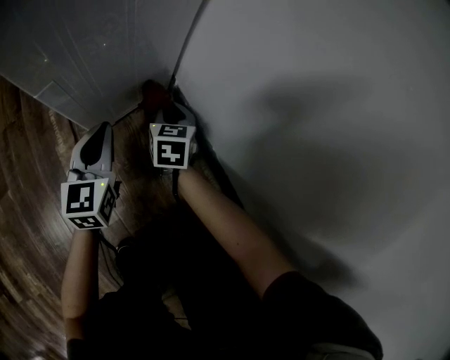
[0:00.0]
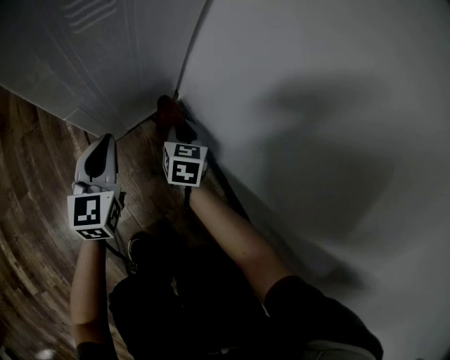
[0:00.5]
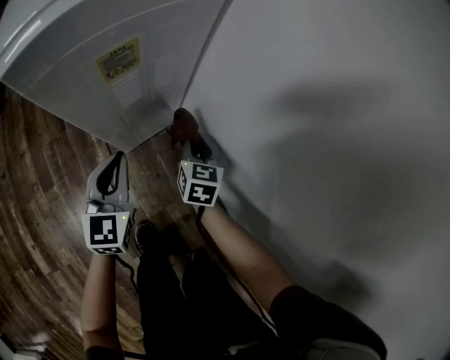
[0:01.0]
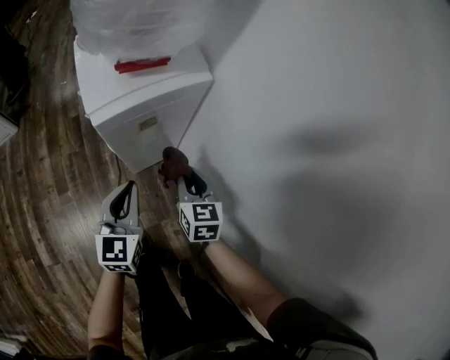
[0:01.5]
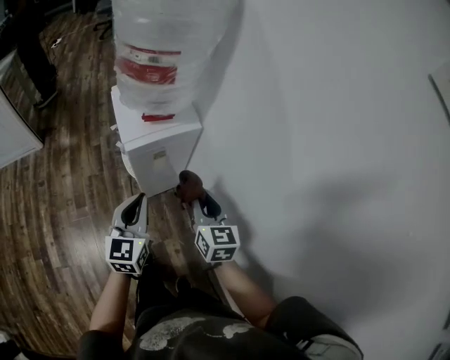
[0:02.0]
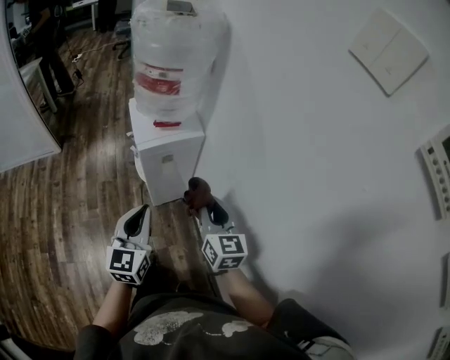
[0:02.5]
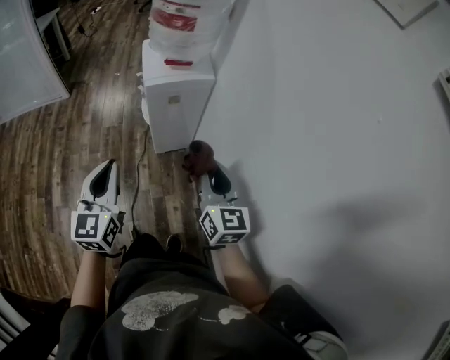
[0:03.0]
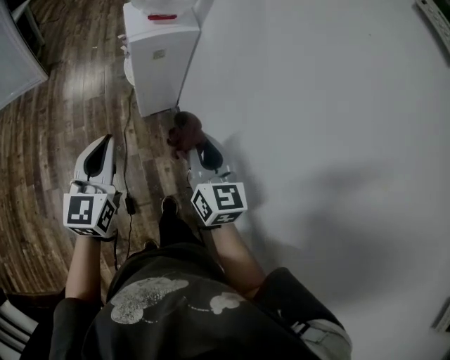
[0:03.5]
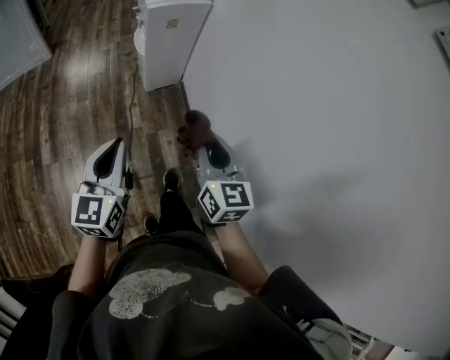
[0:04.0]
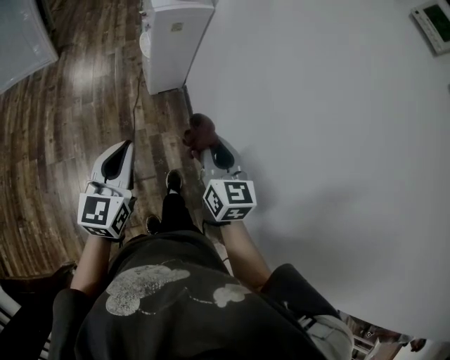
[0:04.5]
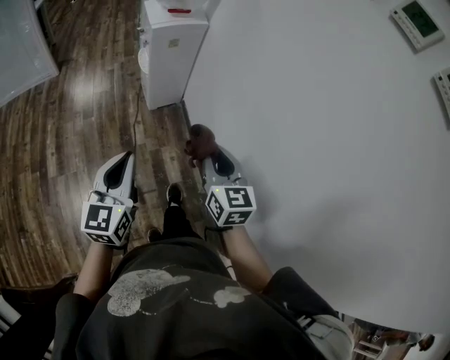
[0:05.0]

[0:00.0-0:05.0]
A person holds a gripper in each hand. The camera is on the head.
0:00.0 to 0:02.5: Both grippers travel together upward, approximately 80 cm. The right gripper rotates about 30 degrees.
0:02.5 to 0:05.0: Both grippers travel together backward, some 35 cm.

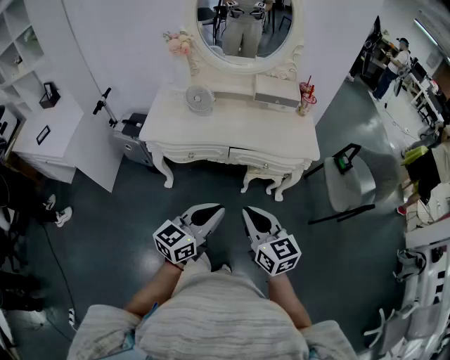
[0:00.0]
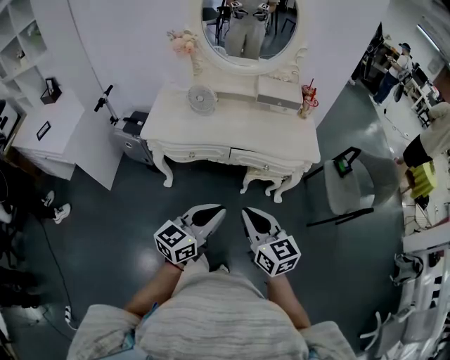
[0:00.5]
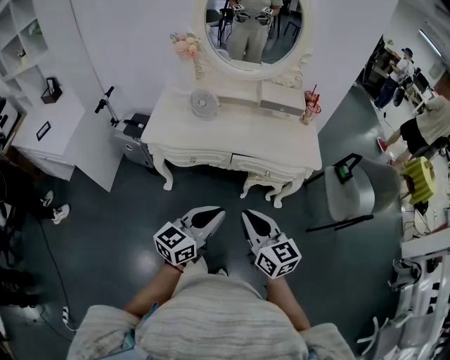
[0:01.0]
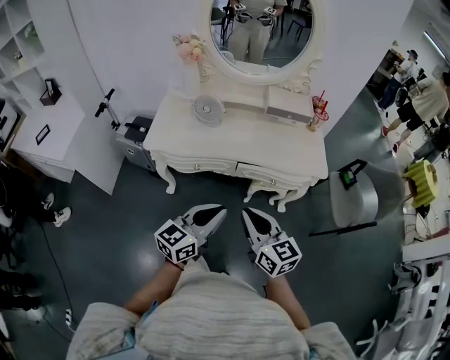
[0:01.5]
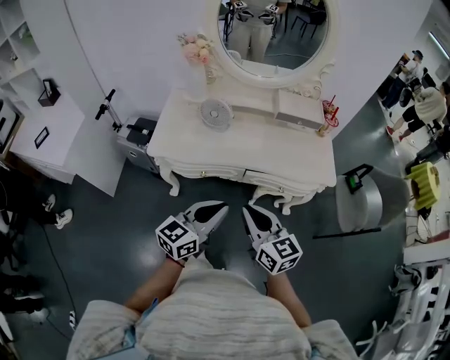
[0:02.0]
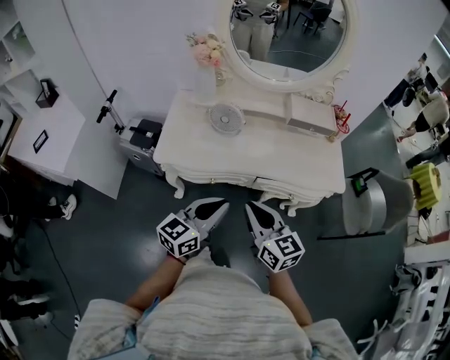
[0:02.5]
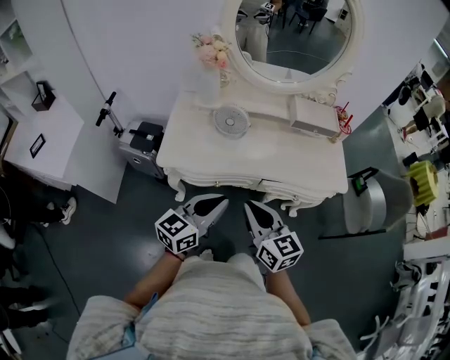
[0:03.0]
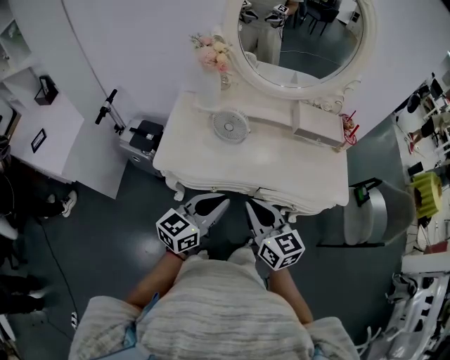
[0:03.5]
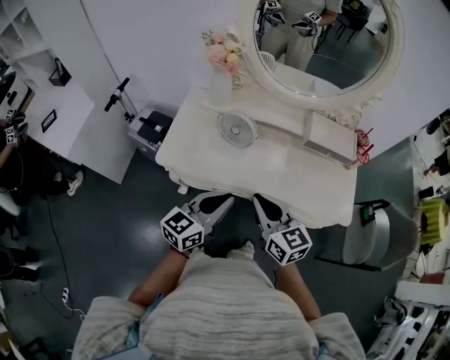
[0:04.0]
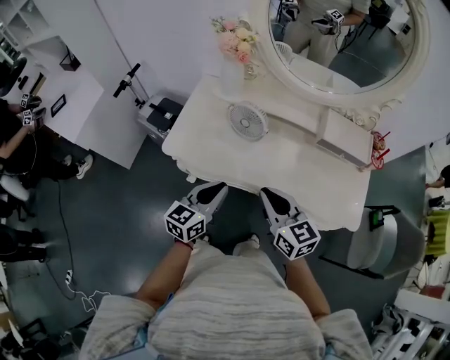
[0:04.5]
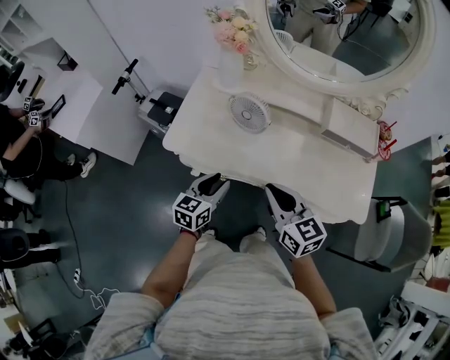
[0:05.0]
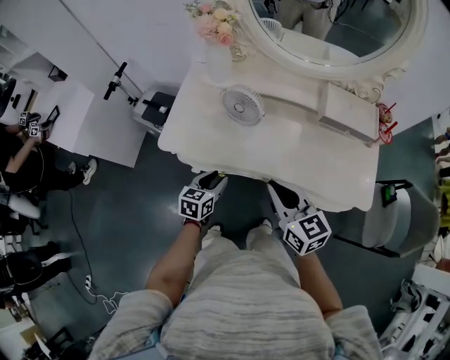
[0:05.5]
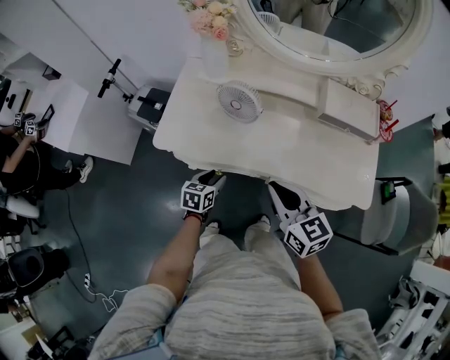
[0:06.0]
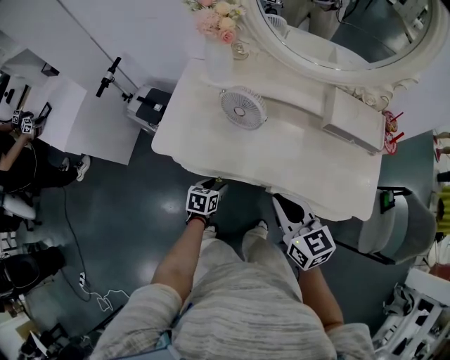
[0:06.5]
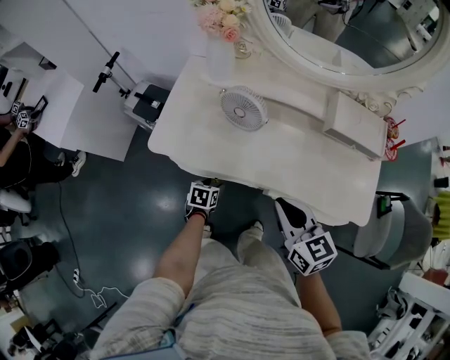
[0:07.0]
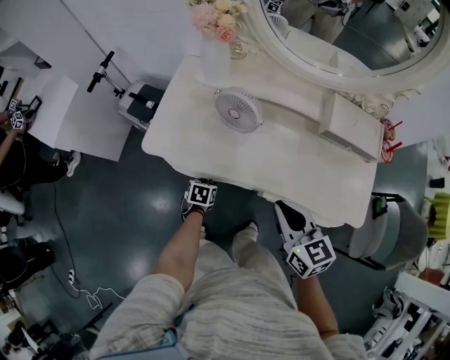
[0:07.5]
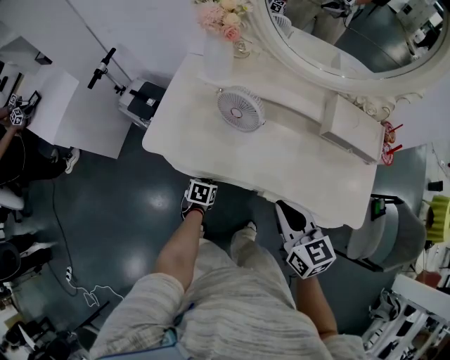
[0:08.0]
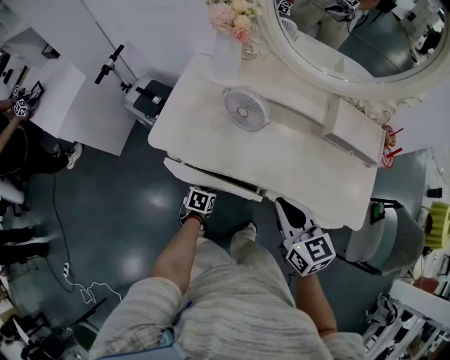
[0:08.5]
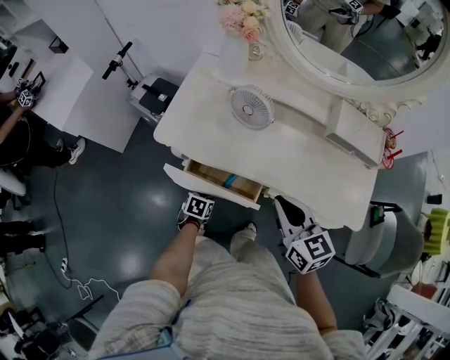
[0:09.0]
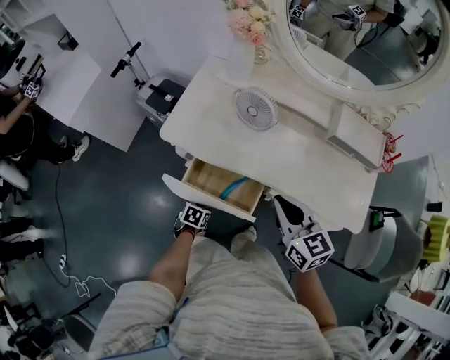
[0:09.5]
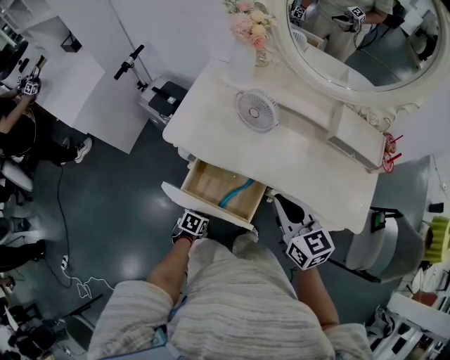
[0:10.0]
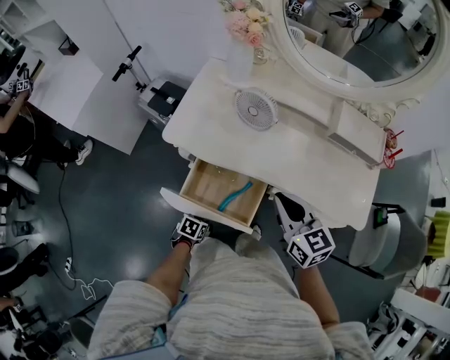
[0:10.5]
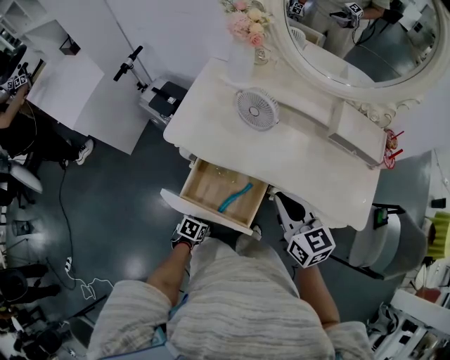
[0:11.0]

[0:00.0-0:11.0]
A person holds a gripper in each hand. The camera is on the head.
0:00.0 to 0:02.0: Both grippers move forward and to the left, about 15 cm.
0:02.0 to 0:03.5: The two grippers go about 15 cm forward and to the left.
0:03.5 to 0:05.5: The left gripper goes about 25 cm downward and forward, points its fingers some 30 degrees further downward, and opens, while the right gripper travels forward and to the right by roughly 10 cm.
0:05.5 to 0:07.5: The left gripper is displaced downward by approximately 15 cm, and swivels about 30 degrees.
0:07.5 to 0:09.0: The left gripper shifts some 10 cm backward.
0:09.0 to 0:11.0: The left gripper travels backward by roughly 10 cm.

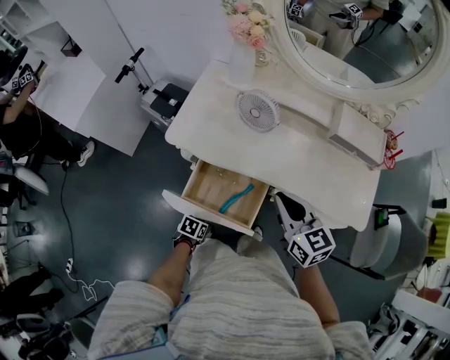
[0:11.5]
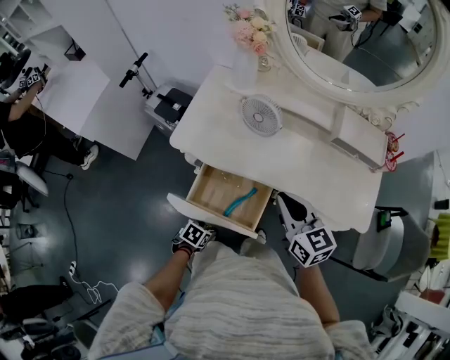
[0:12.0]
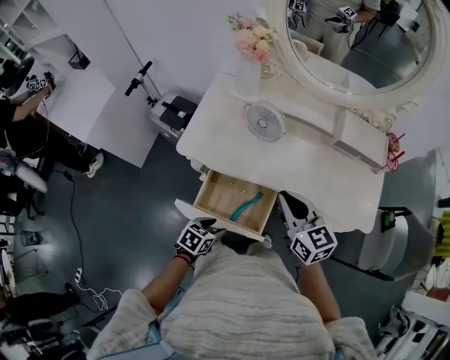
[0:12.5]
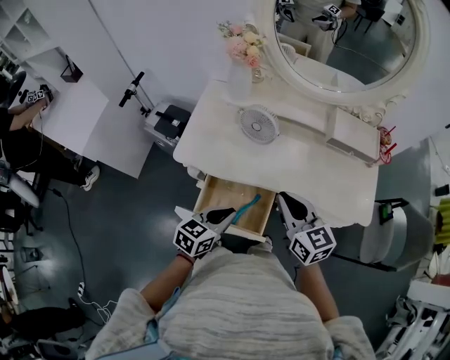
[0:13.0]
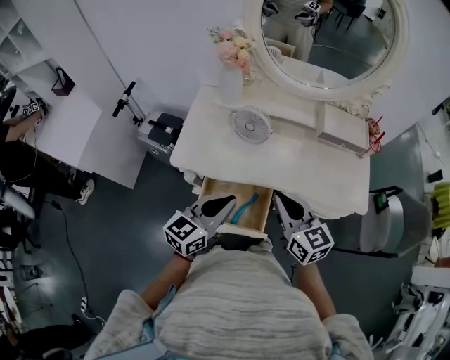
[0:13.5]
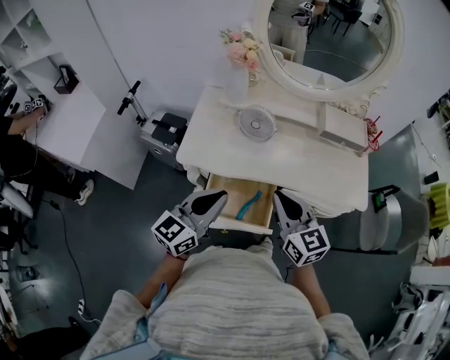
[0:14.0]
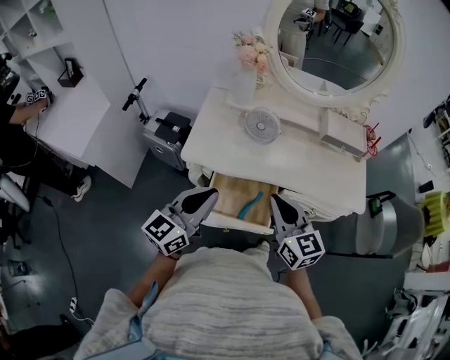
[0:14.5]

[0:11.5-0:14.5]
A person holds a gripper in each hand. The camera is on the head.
0:11.5 to 0:13.0: The left gripper goes about 30 cm upward and forward, points its fingers some 40 degrees further upward, and closes its fingers.
0:13.0 to 0:14.5: The right gripper is displaced backward and to the left by roughly 10 cm. Meanwhile the left gripper moves upward and to the left, about 20 cm, and tips its fingers upward by approximately 30 degrees.

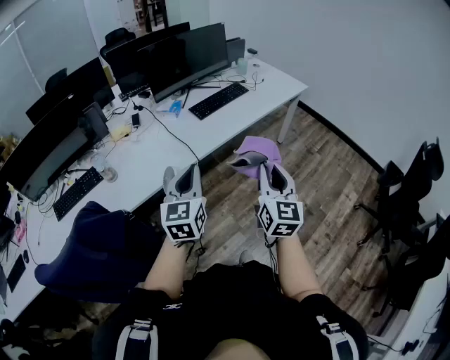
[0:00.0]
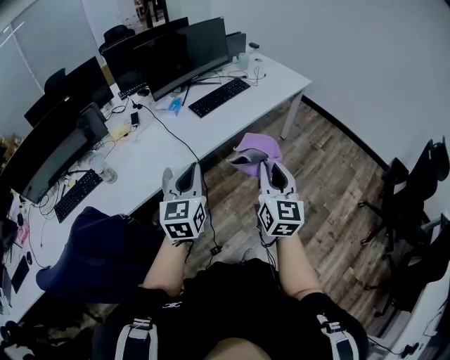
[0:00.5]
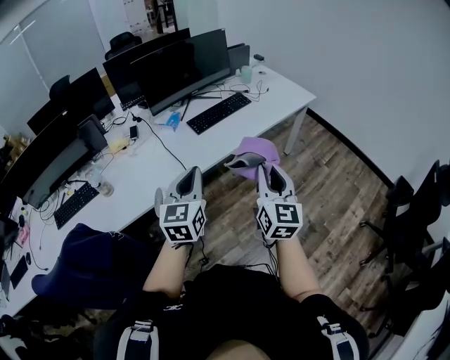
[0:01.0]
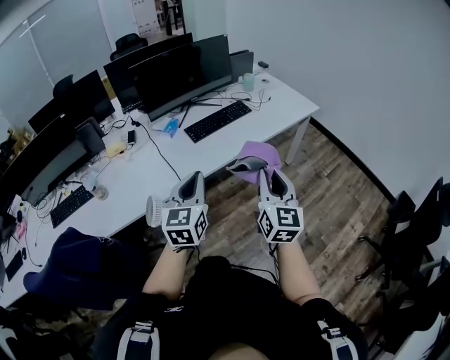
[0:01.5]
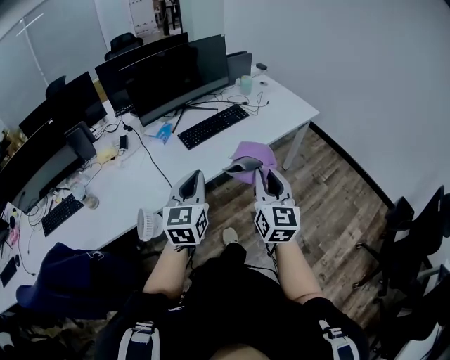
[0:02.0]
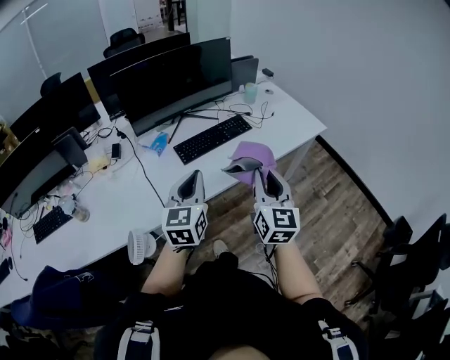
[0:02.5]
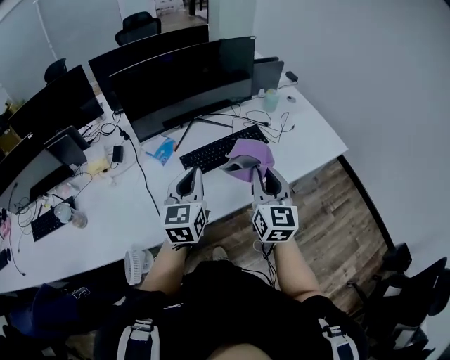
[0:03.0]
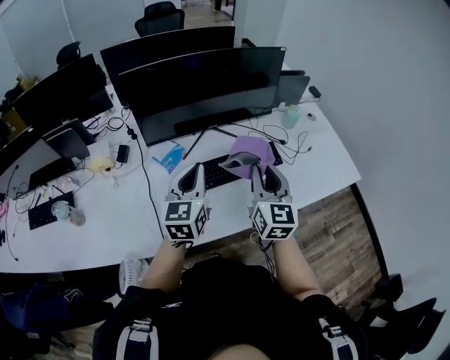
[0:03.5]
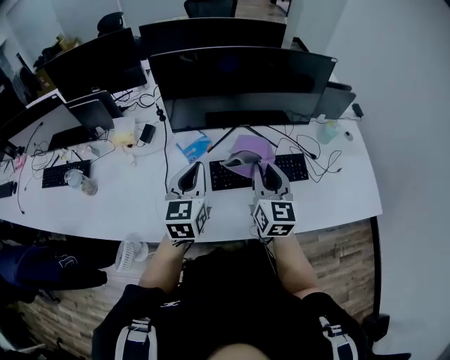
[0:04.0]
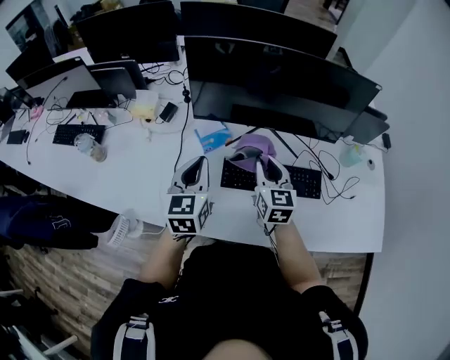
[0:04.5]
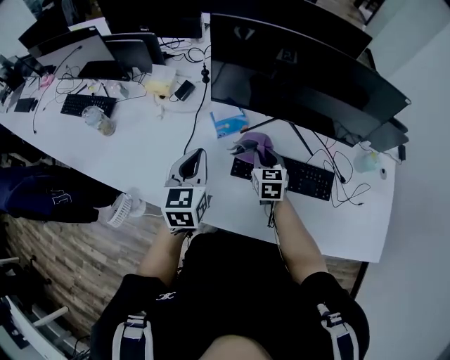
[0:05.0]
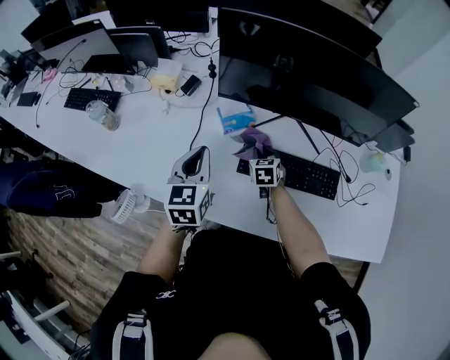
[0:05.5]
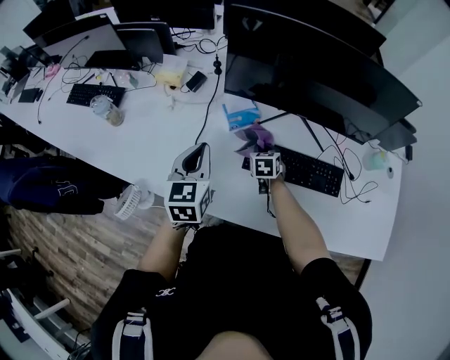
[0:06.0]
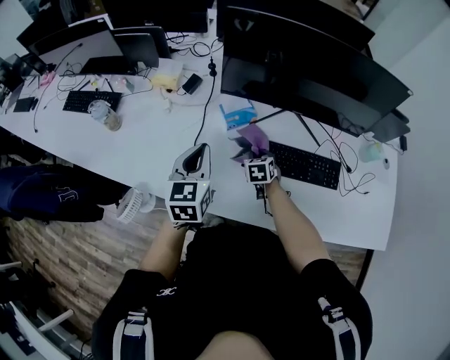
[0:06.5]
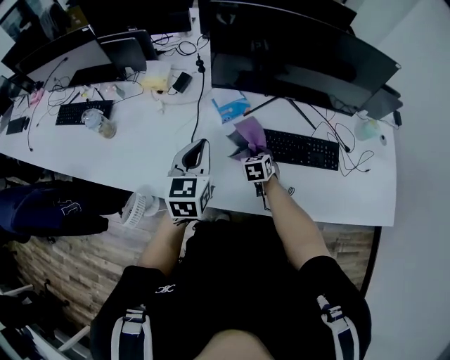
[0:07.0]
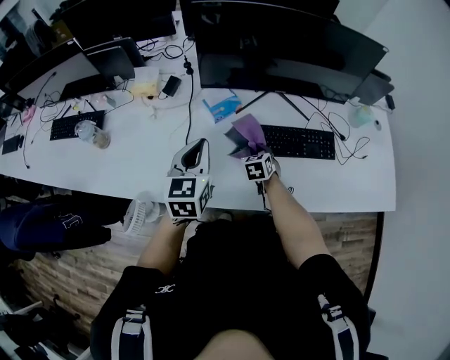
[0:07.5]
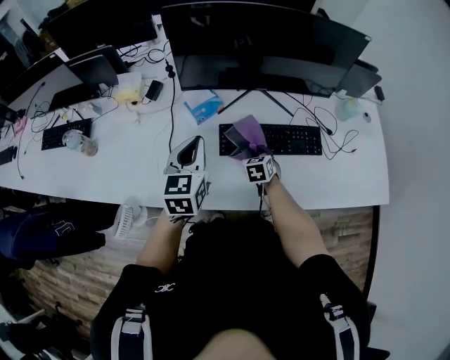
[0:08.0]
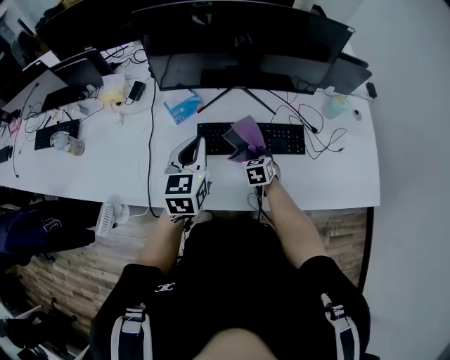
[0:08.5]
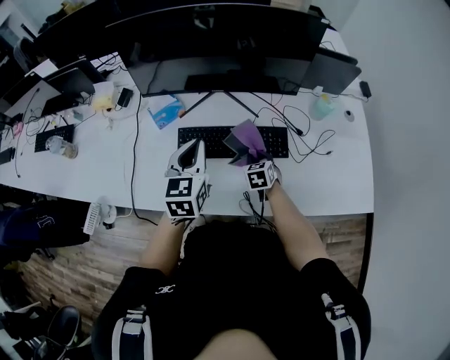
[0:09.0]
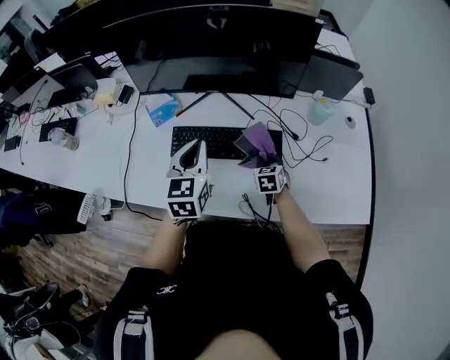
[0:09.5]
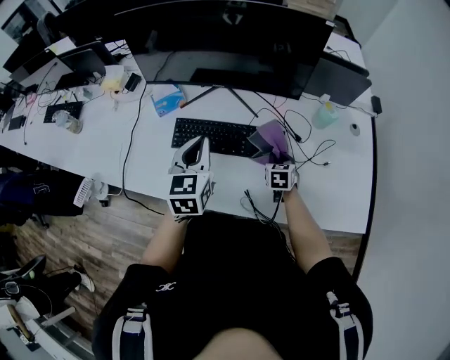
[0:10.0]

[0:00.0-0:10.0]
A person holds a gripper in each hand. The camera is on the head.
0:00.0 to 0:02.0: The grippers both shift forward and to the right by about 25 cm.
0:02.0 to 0:04.0: Both grippers are carried about 50 cm. The left gripper swivels about 30 degrees. Meanwhile the right gripper turns by some 30 degrees.
0:04.0 to 0:06.0: The right gripper heads downward and forward, covering roughly 30 cm, and tips its fingers downward by some 40 degrees, while the left gripper moves to the left and downward, roughly 10 cm, and swivels approximately 20 degrees.
0:06.0 to 0:08.0: The right gripper shifts about 10 cm to the right and backward. Meanwhile the left gripper is displaced to the right by roughly 5 cm.
0:08.0 to 0:10.0: The two grippers go approximately 30 cm to the right.
